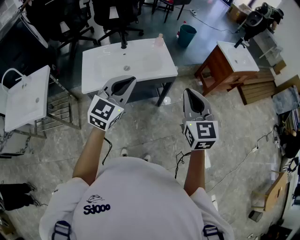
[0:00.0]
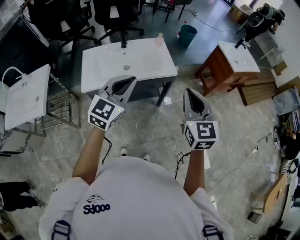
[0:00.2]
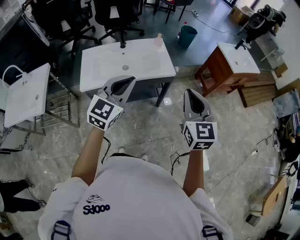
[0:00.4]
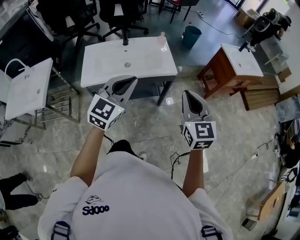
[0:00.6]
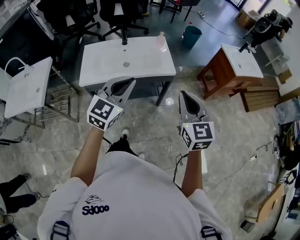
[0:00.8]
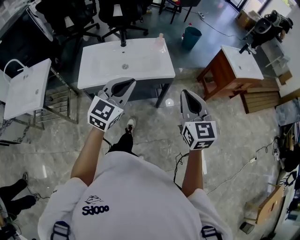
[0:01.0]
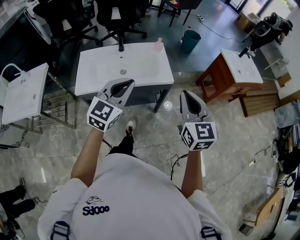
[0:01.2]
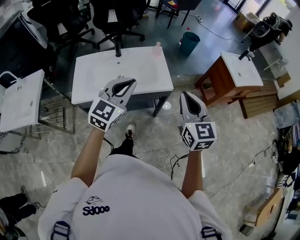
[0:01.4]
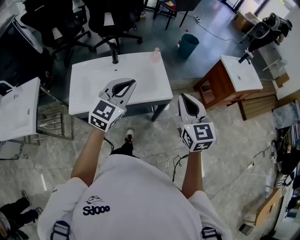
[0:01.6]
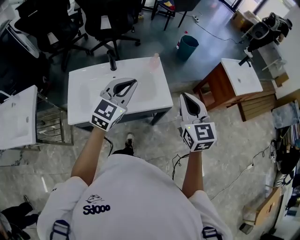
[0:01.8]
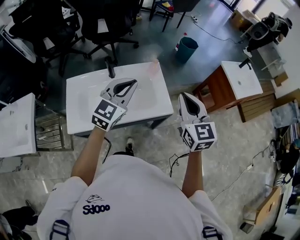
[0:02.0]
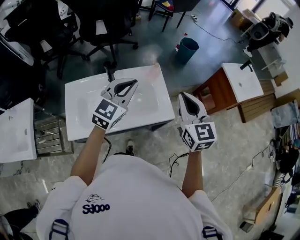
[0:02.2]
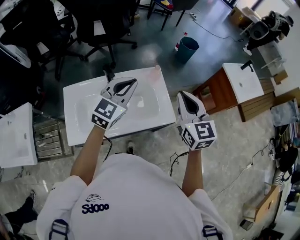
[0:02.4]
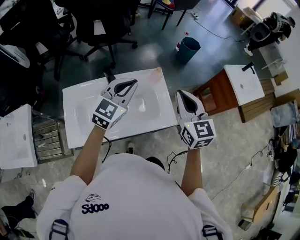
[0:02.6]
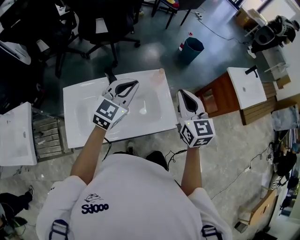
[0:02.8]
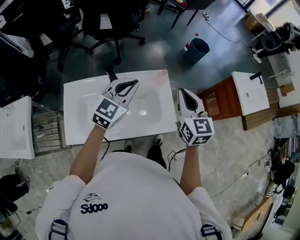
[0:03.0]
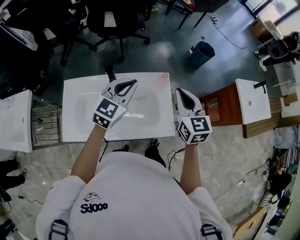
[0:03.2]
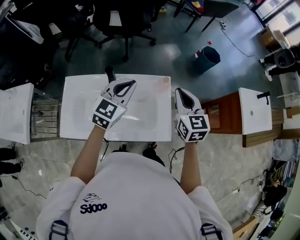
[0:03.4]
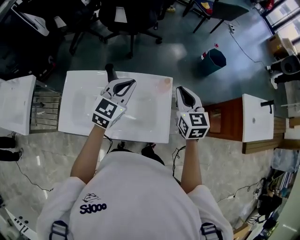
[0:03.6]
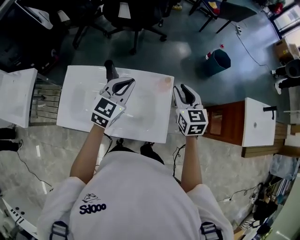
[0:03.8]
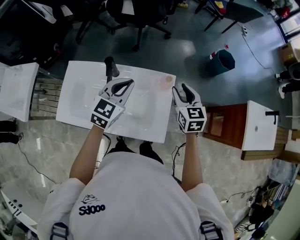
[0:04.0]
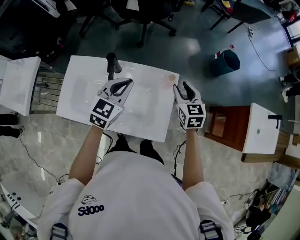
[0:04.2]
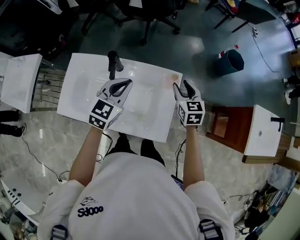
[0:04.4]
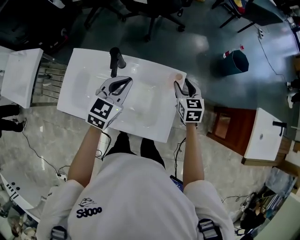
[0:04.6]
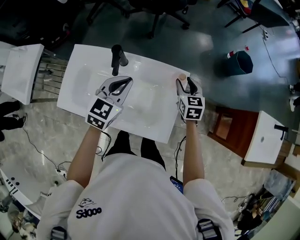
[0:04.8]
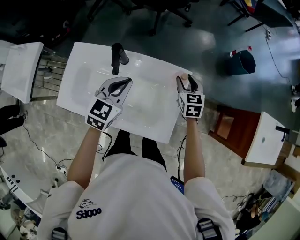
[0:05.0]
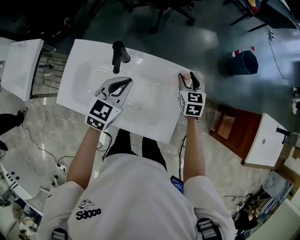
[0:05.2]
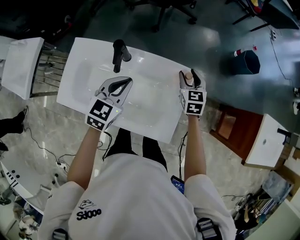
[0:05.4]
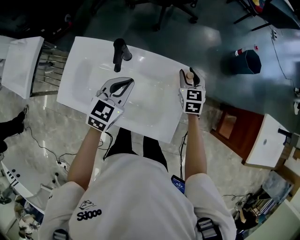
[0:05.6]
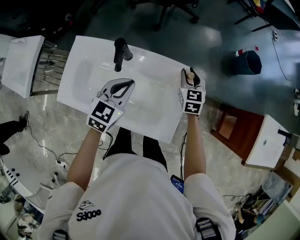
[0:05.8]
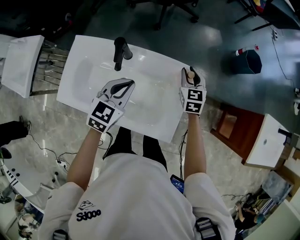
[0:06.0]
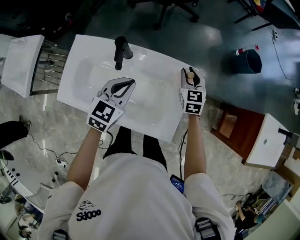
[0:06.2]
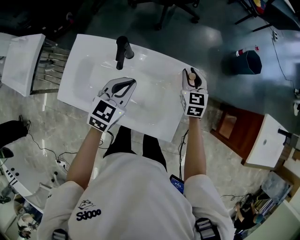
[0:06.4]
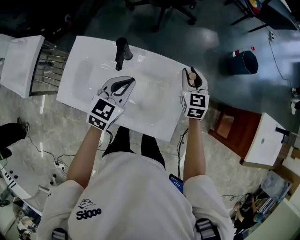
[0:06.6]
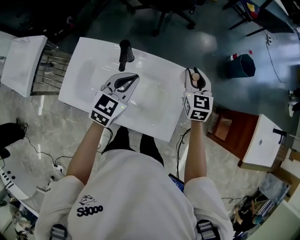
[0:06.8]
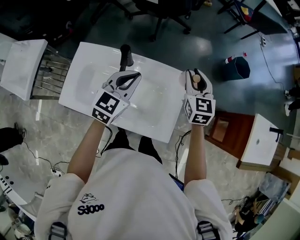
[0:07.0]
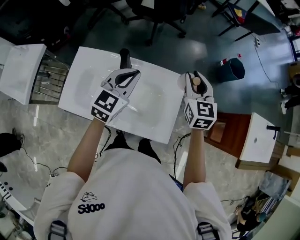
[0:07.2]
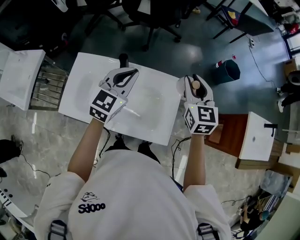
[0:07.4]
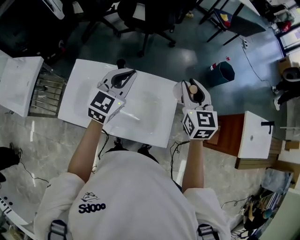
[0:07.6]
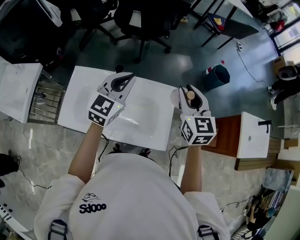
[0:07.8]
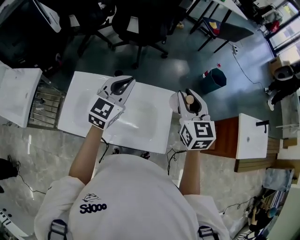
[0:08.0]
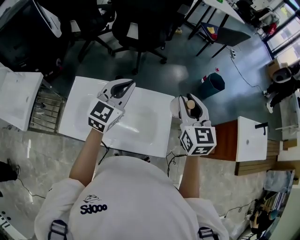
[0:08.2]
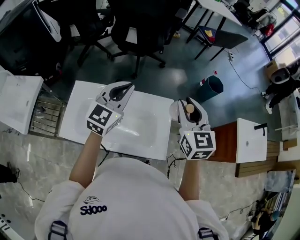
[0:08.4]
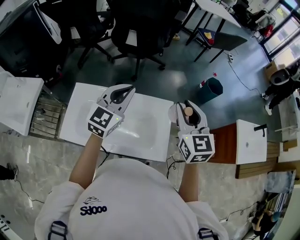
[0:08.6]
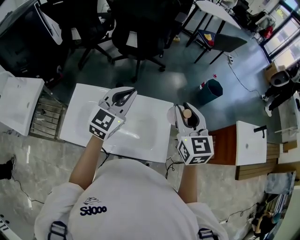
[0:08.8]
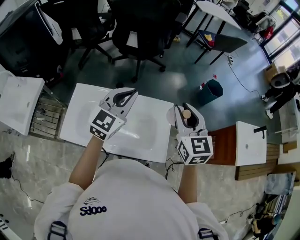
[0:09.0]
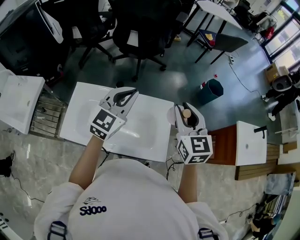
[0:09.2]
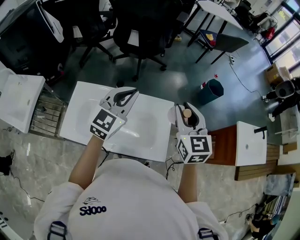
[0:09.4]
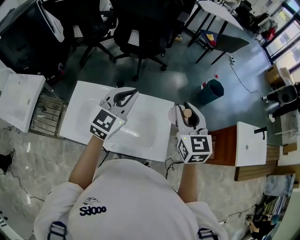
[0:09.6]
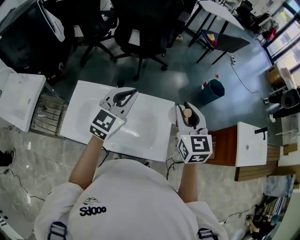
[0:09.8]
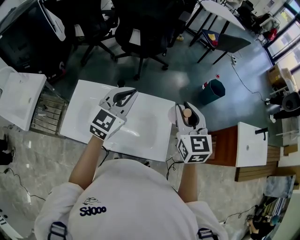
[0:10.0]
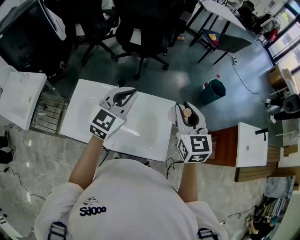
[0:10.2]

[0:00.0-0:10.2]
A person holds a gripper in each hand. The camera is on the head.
0:00.0 to 0:01.4: Both grippers move forward, roughly 10 cm.
0:01.4 to 0:03.0: The two grippers go approximately 30 cm forward.
0:03.0 to 0:04.4: The left gripper shifts roughly 5 cm downward, and rotates some 30 degrees. Meanwhile the right gripper goes about 25 cm downward and forward, turns by approximately 30 degrees, and opens up.
0:04.4 to 0:05.8: The left gripper goes about 5 cm downward. The right gripper shifts roughly 10 cm downward and forward.
0:05.8 to 0:07.2: The left gripper travels upward by roughly 10 cm; the right gripper is displaced upward by some 20 cm.
0:07.2 to 0:08.8: The left gripper travels upward by approximately 10 cm. The right gripper heads upward and backward, covering roughly 15 cm.
0:08.8 to 0:10.2: Neither gripper changes place.

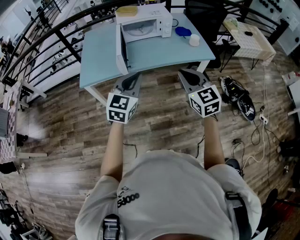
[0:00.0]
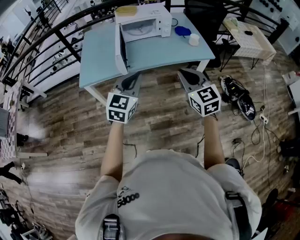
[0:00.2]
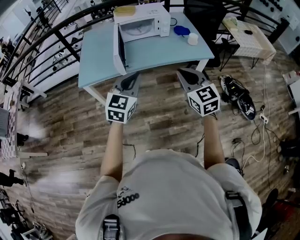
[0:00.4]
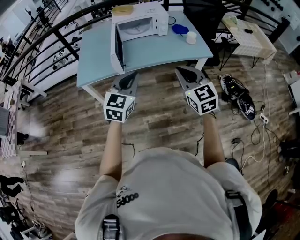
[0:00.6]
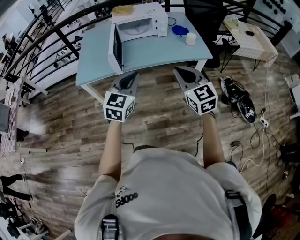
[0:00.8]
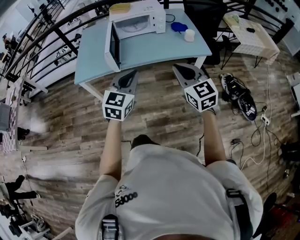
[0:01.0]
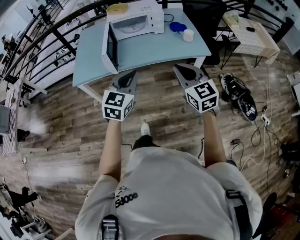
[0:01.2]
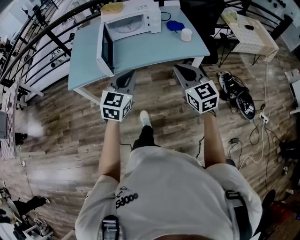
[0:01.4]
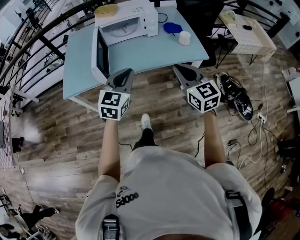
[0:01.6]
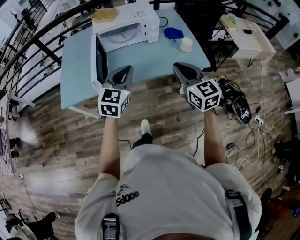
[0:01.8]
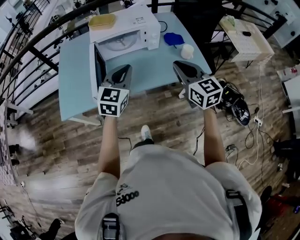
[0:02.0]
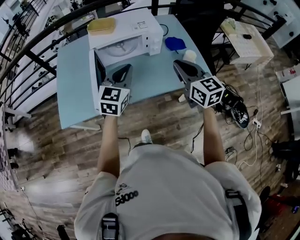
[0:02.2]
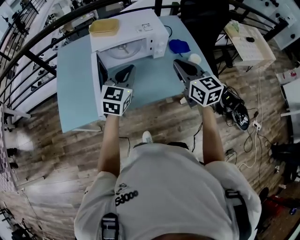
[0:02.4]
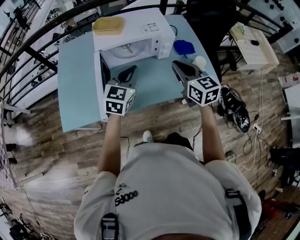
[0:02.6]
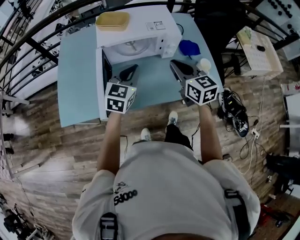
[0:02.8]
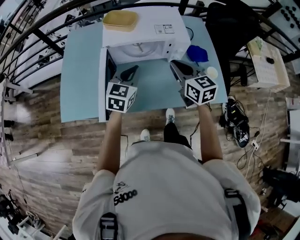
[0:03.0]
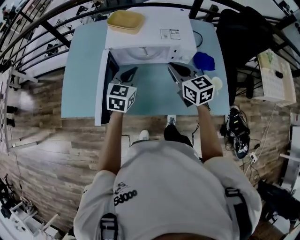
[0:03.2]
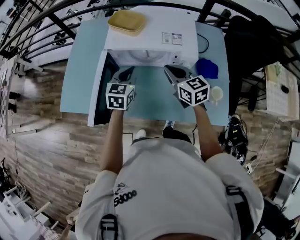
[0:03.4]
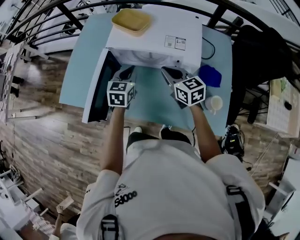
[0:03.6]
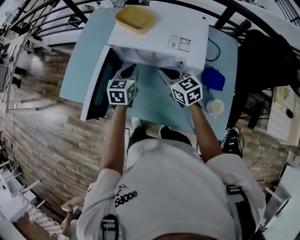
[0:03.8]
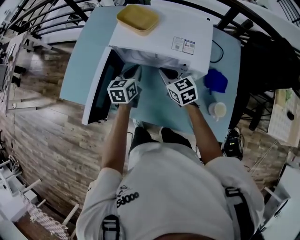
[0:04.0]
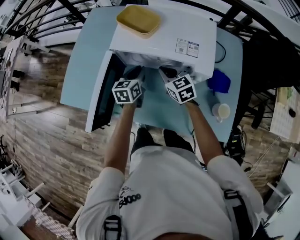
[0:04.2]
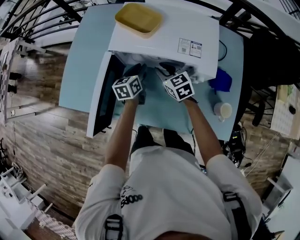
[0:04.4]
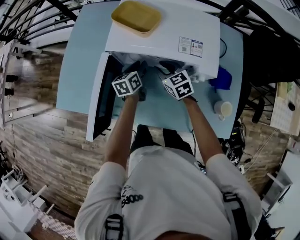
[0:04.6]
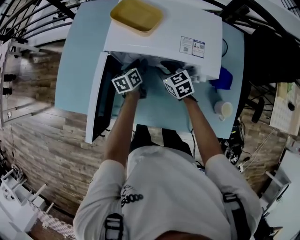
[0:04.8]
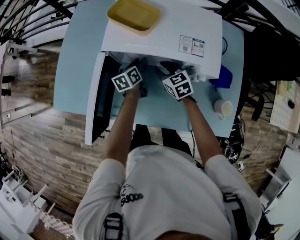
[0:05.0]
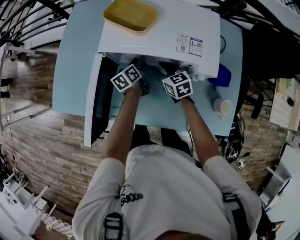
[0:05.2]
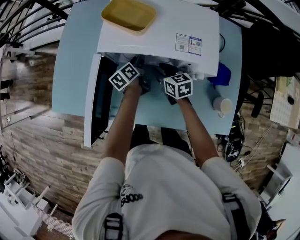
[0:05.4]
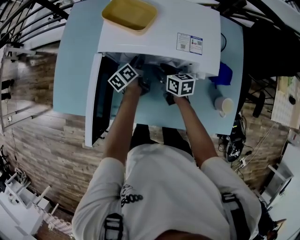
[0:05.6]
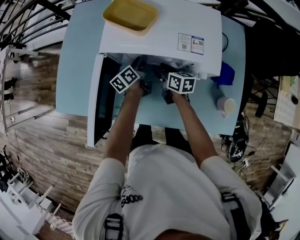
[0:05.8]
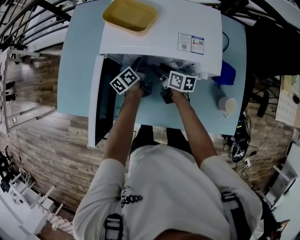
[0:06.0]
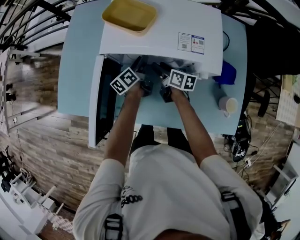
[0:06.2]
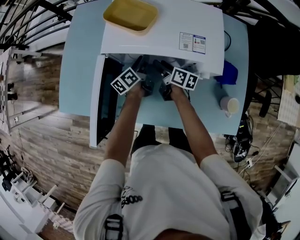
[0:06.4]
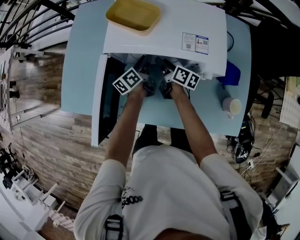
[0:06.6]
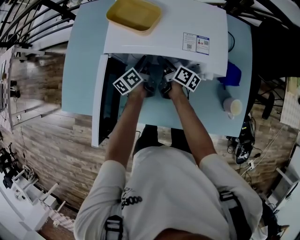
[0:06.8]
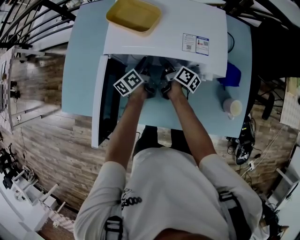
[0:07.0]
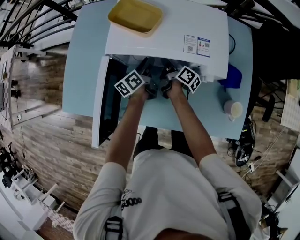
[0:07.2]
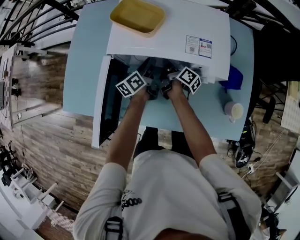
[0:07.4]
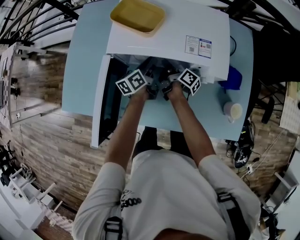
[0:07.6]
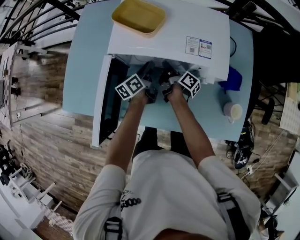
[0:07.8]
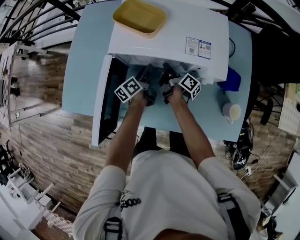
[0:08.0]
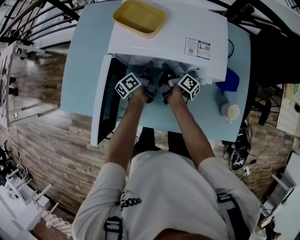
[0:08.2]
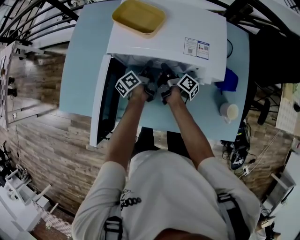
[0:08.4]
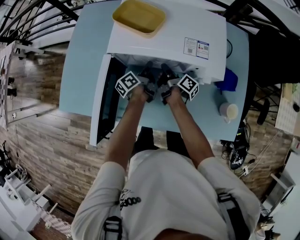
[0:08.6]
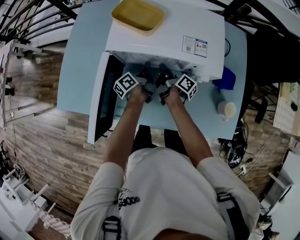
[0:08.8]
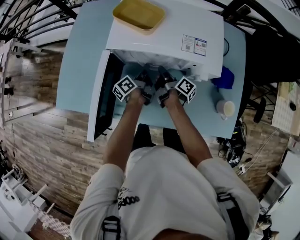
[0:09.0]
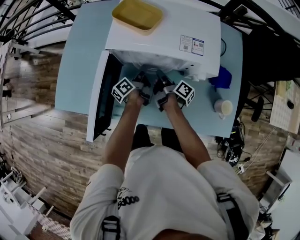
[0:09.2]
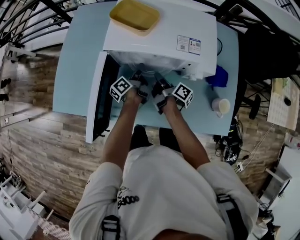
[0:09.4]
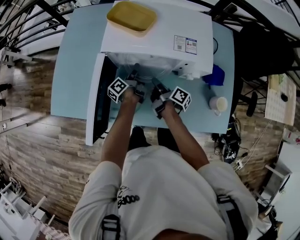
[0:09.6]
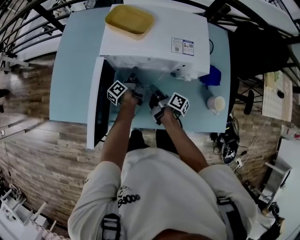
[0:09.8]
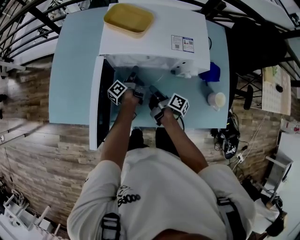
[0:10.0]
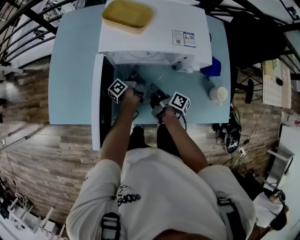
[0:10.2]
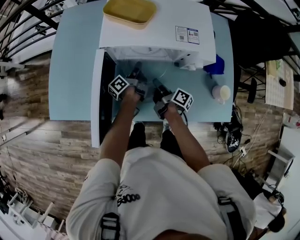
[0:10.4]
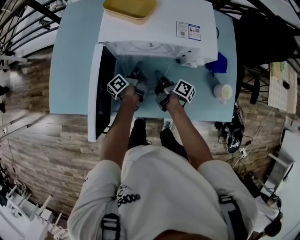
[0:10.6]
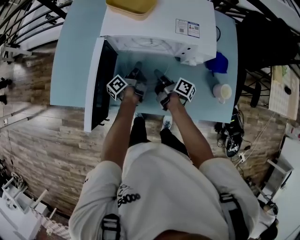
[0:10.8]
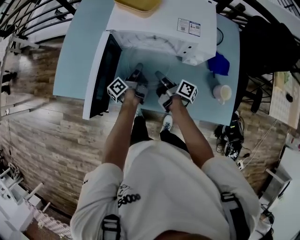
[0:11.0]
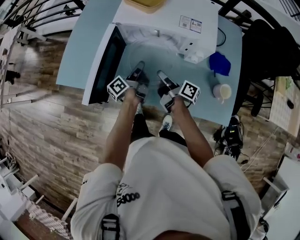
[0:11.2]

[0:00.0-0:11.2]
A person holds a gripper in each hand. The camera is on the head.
0:00.0 to 0:01.6: The two grippers go approximately 15 cm forward and to the right.
0:01.6 to 0:03.2: The pair of grippers is taken forward, some 40 cm. The right gripper turns by about 20 degrees.
0:03.2 to 0:04.8: Both grippers move downward and forward, about 25 cm. The left gripper rolls counterclockwise, seen from behind, by approximately 50 degrees, and opens up; the right gripper rotates about 20 degrees, and opens its fingers.
0:04.8 to 0:06.4: The right gripper twists some 60 degrees clockwise, seen from behind, and opens its fingers. The left gripper rotates some 20 degrees.
0:06.4 to 0:08.0: The right gripper swivels approximately 30 degrees, and closes.
0:08.0 to 0:09.6: The right gripper moves backward, about 10 cm. The left gripper rotates some 20 degrees, and closes, then reopens.
0:09.6 to 0:11.2: The left gripper travels backward and upward by about 15 cm, and closes; the right gripper moves backward, some 10 cm.

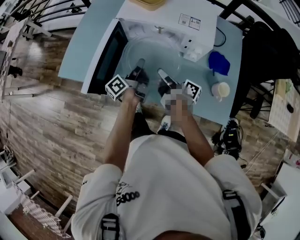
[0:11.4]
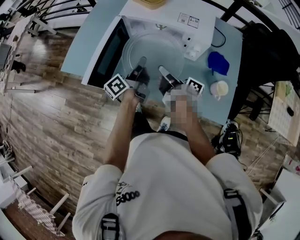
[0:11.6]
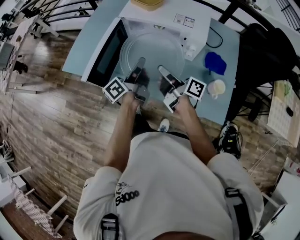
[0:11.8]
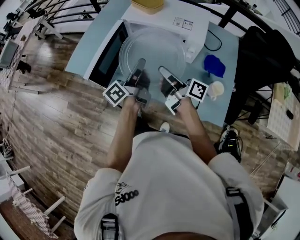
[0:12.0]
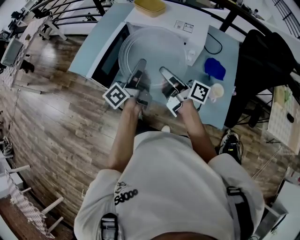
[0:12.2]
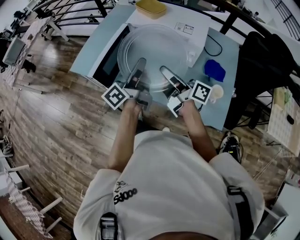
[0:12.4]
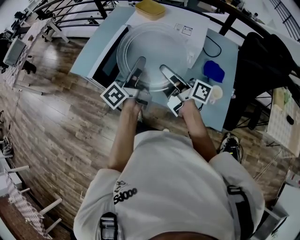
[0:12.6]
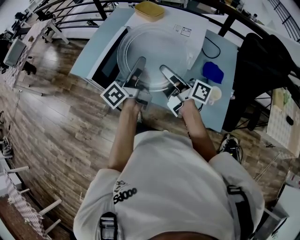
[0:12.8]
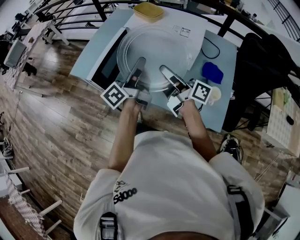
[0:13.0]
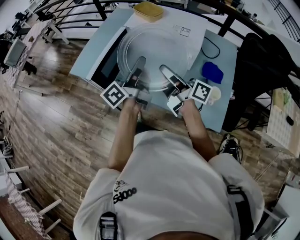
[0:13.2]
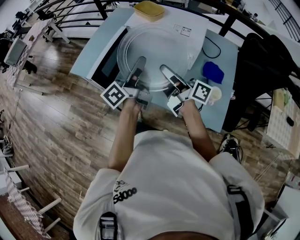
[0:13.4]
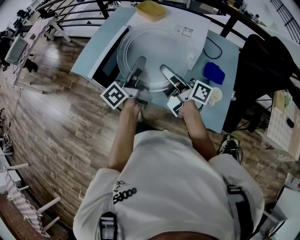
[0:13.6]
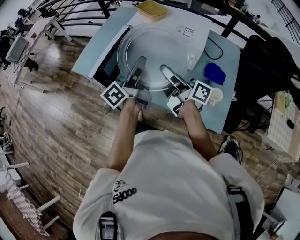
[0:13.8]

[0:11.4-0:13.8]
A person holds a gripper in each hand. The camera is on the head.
0:11.4 to 0:12.6: The grippers both shift upward and backward by some 20 cm. The right gripper rotates about 30 degrees; the left gripper turns by roughly 20 degrees.
0:12.6 to 0:13.8: Both grippers stay put.
